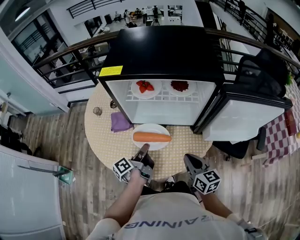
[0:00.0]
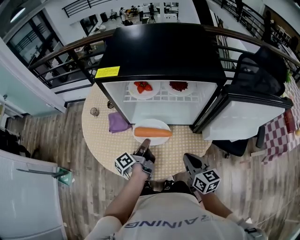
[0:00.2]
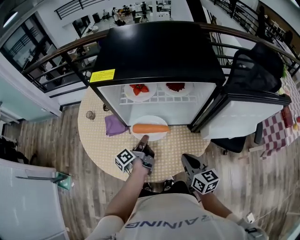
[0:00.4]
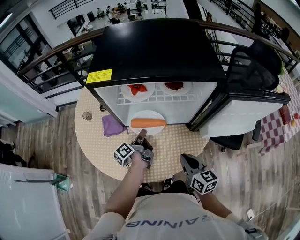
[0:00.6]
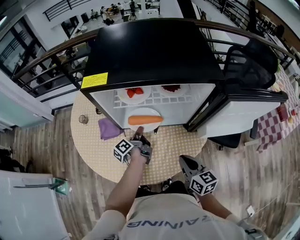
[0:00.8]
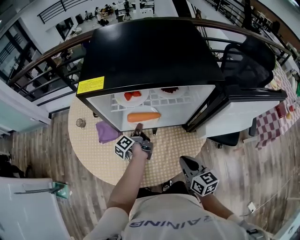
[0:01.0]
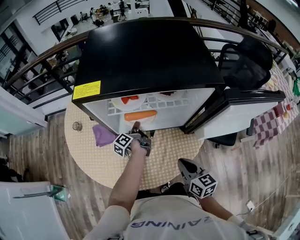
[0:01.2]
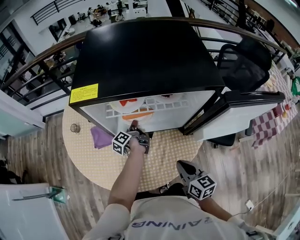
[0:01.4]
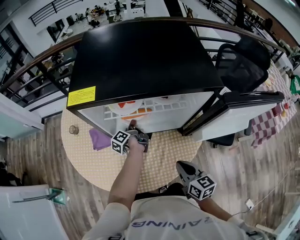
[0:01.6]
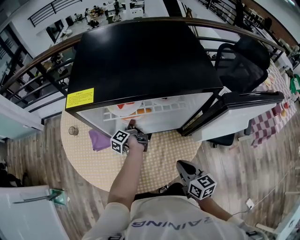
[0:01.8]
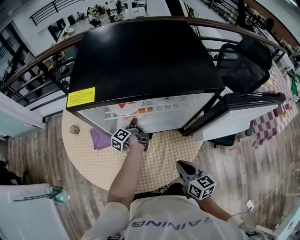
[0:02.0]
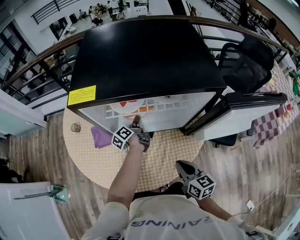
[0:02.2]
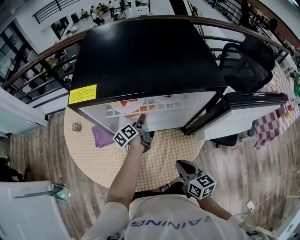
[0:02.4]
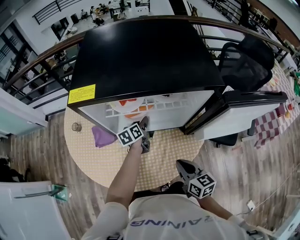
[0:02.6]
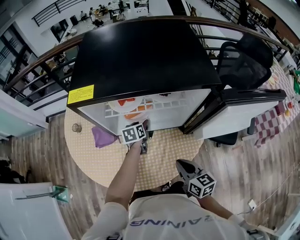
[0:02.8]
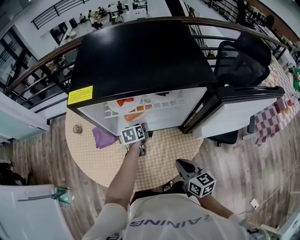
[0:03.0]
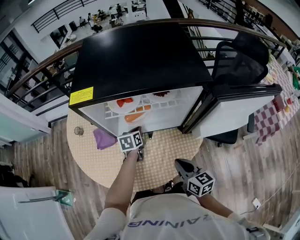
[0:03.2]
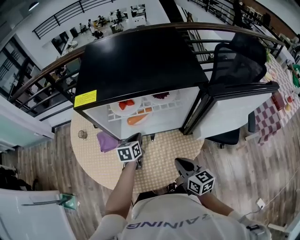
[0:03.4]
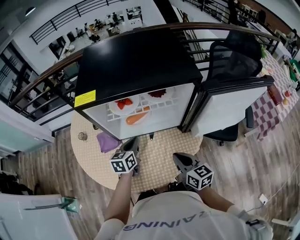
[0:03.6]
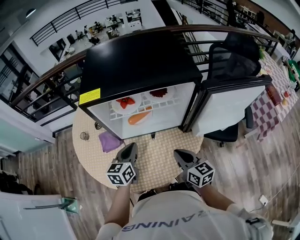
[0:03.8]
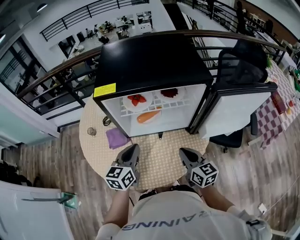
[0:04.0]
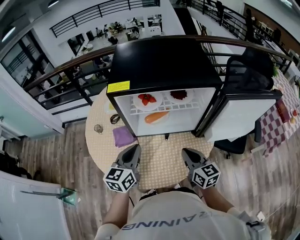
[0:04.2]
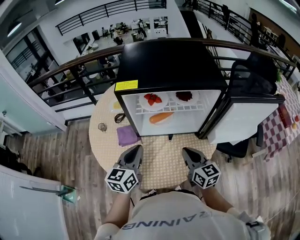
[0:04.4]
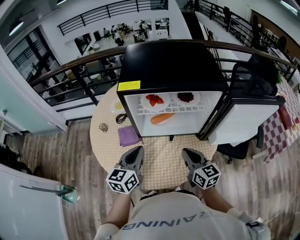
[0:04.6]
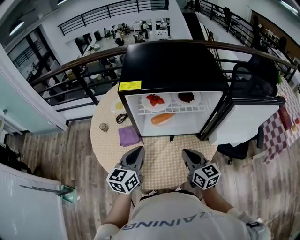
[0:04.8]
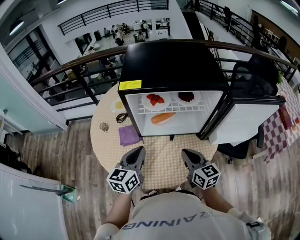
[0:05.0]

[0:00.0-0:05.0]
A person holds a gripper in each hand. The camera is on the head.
3.4 to 5.0 s: The right gripper shifts by about 10 cm.

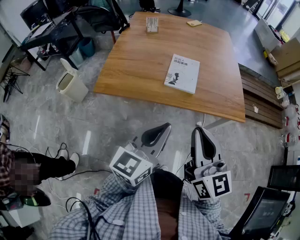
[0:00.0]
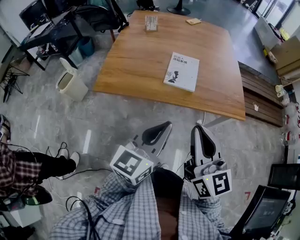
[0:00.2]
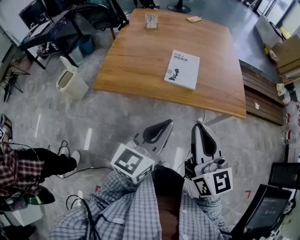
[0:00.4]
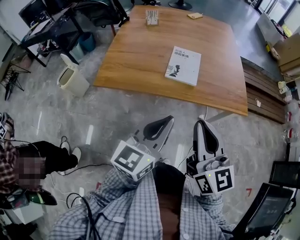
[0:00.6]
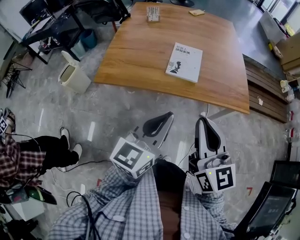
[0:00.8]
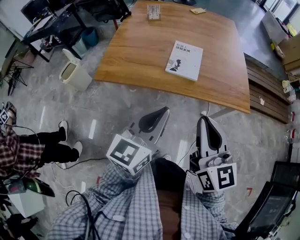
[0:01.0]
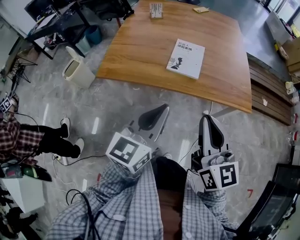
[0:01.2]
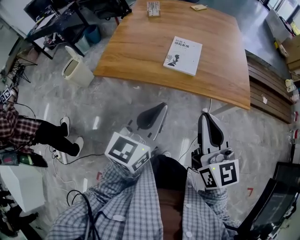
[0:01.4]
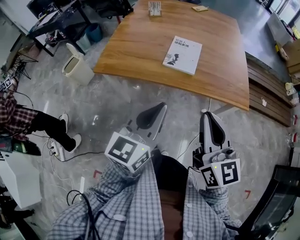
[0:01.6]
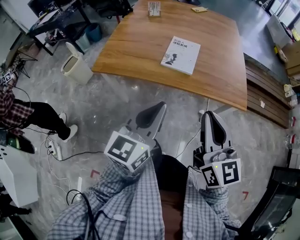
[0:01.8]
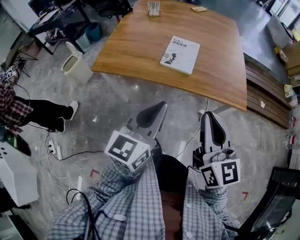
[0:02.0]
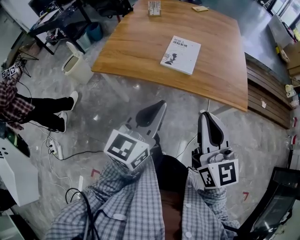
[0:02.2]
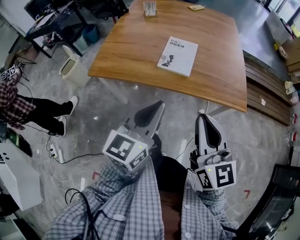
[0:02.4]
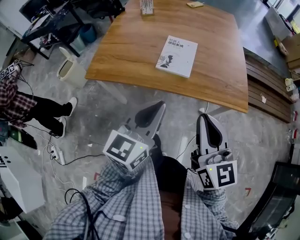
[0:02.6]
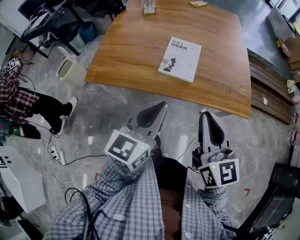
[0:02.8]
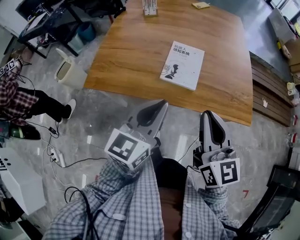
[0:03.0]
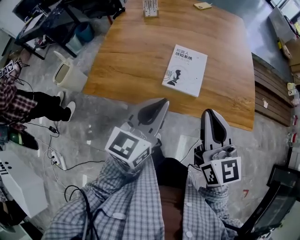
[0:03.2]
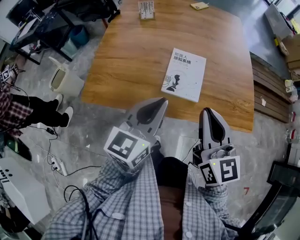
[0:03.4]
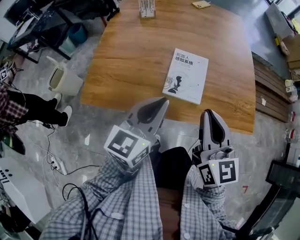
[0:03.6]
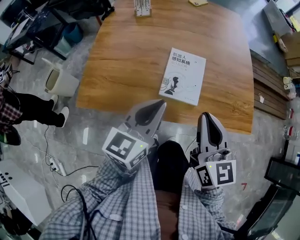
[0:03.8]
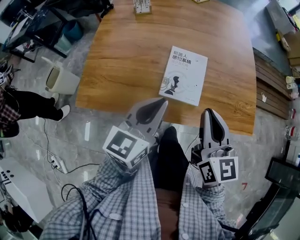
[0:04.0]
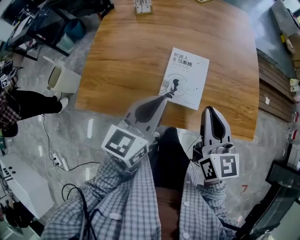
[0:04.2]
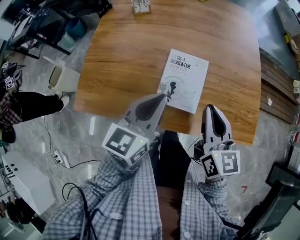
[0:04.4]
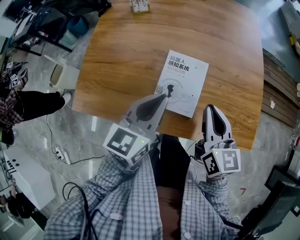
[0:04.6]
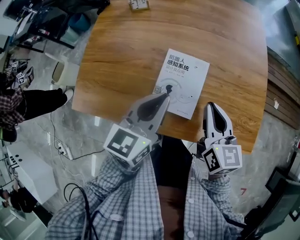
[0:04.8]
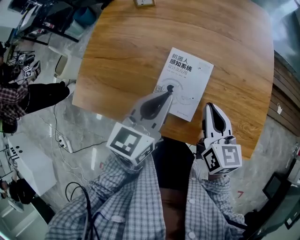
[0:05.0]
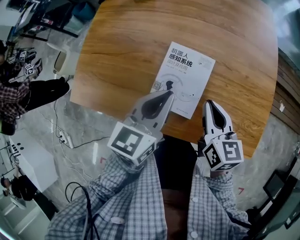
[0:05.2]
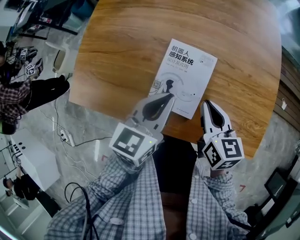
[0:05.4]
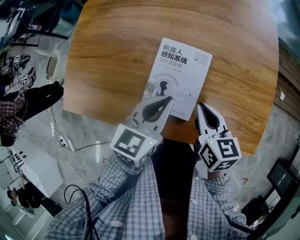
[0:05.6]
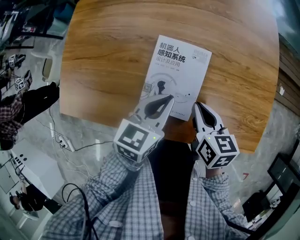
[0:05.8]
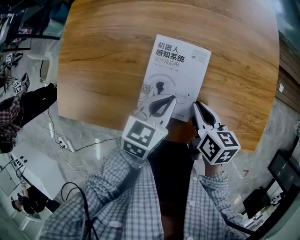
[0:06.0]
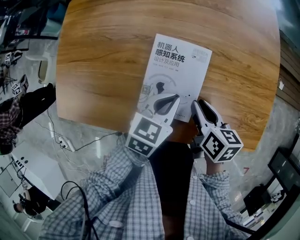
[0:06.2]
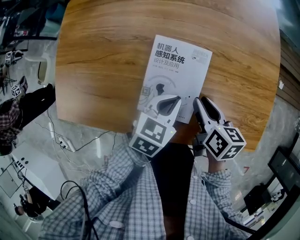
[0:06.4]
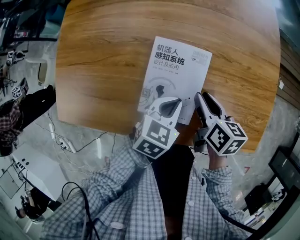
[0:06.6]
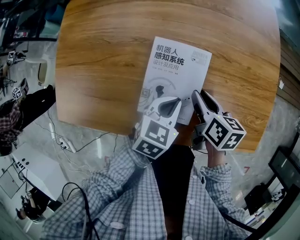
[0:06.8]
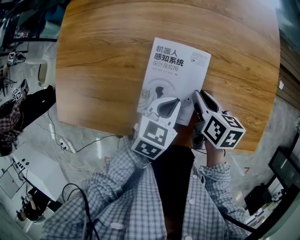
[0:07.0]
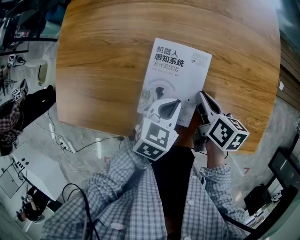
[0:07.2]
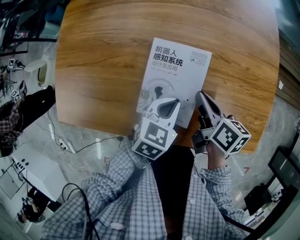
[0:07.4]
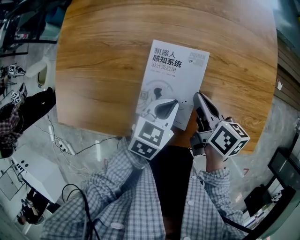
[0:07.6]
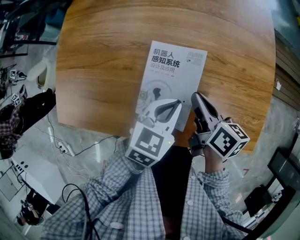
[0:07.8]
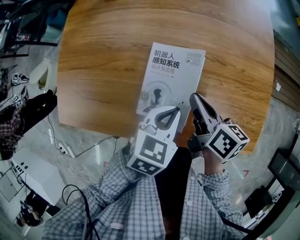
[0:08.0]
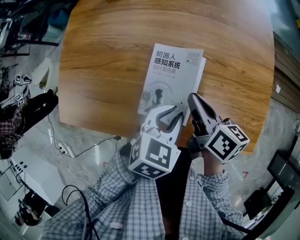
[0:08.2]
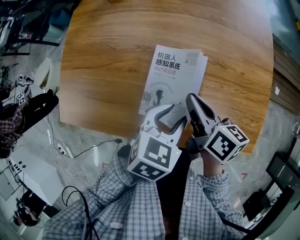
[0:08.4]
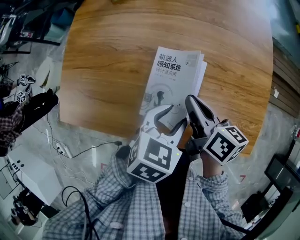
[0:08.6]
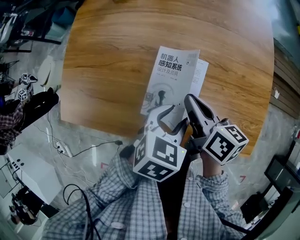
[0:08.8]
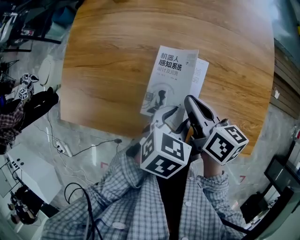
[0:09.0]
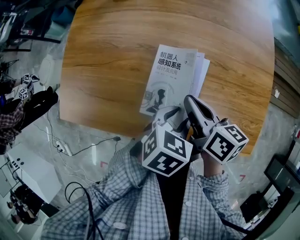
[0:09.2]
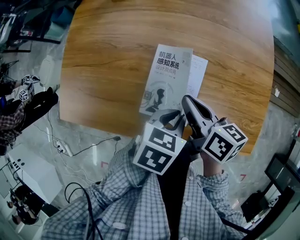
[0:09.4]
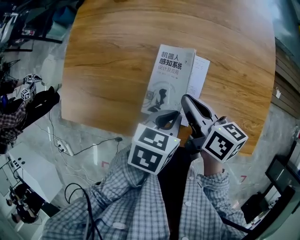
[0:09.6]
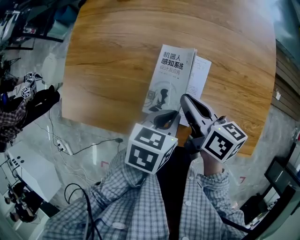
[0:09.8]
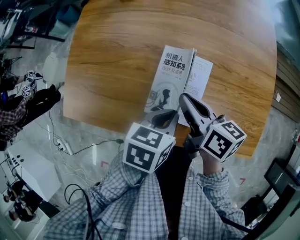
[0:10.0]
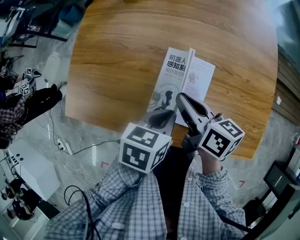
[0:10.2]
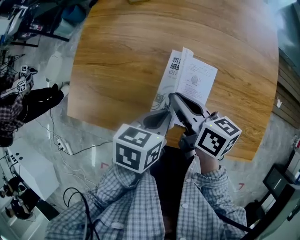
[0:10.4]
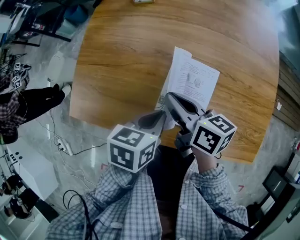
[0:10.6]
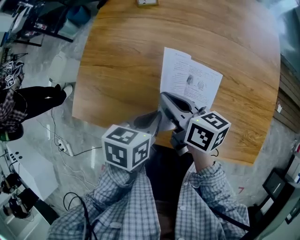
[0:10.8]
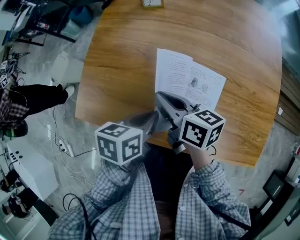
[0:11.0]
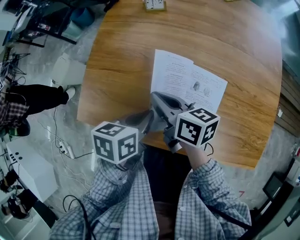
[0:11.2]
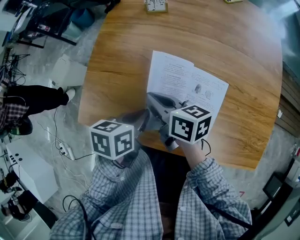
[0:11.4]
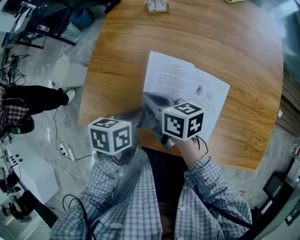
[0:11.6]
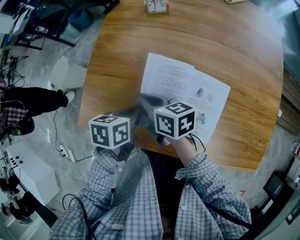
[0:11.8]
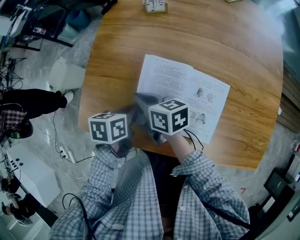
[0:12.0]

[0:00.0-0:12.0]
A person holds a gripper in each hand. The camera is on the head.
0.0 to 1.6 s: The right gripper travels to the right by approximately 10 cm.
1.6 to 3.0 s: The two grippers go roughly 15 cm forward.
3.0 to 4.4 s: Both grippers move forward, about 20 cm.
4.4 to 6.0 s: The right gripper goes approximately 20 cm downward, and swivels roughly 40 degrees. Meanwhile the left gripper shifts roughly 20 cm downward and to the right, and turns by some 30 degrees.
6.0 to 7.6 s: The right gripper goes approximately 5 cm forward.
7.6 to 9.0 s: Both grippers travel together upward, roughly 5 cm. The left gripper opens.
9.0 to 10.4 s: Both grippers travel together to the left, approximately 10 cm. The left gripper rotates about 30 degrees, and closes.
10.4 to 12.0 s: The right gripper moves to the left, some 20 cm. Meanwhile the left gripper travels to the left and forward by approximately 20 cm.

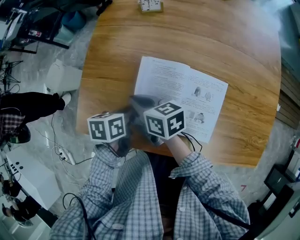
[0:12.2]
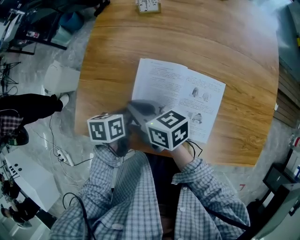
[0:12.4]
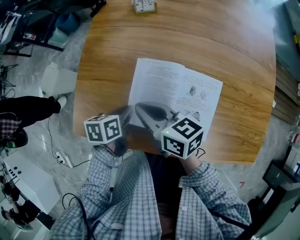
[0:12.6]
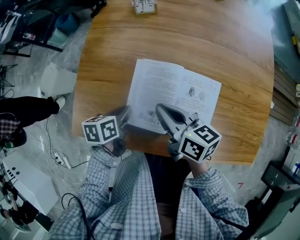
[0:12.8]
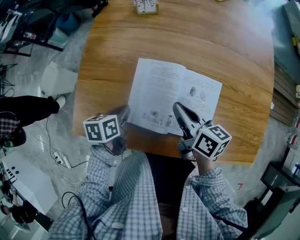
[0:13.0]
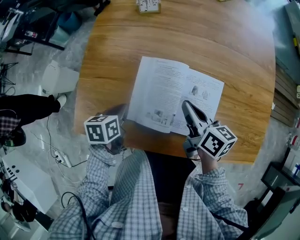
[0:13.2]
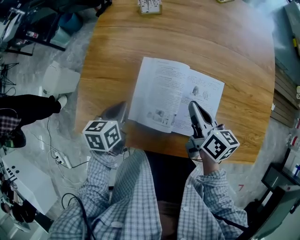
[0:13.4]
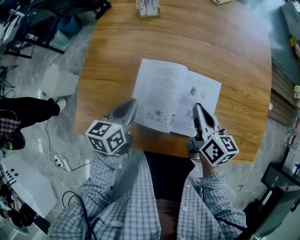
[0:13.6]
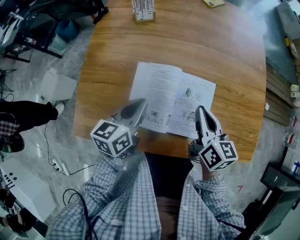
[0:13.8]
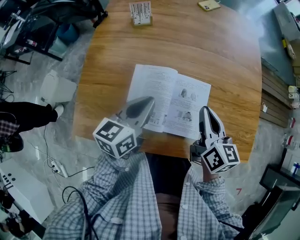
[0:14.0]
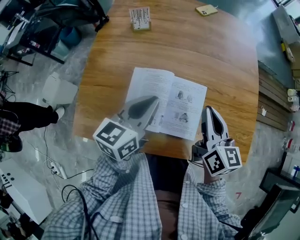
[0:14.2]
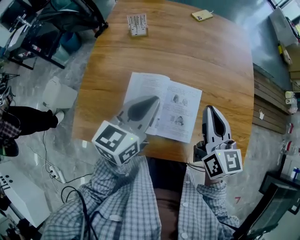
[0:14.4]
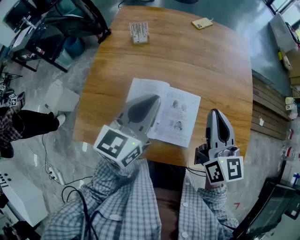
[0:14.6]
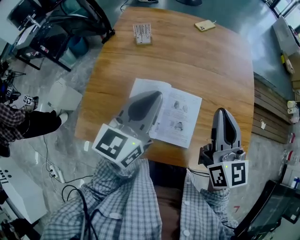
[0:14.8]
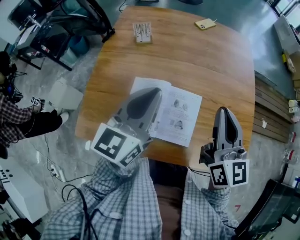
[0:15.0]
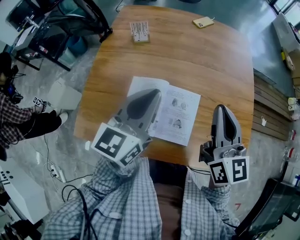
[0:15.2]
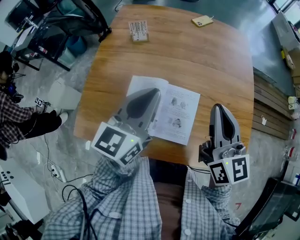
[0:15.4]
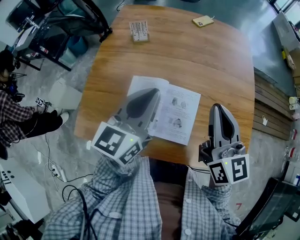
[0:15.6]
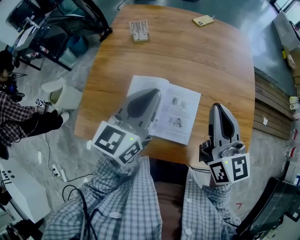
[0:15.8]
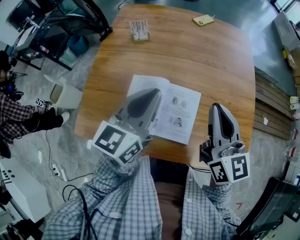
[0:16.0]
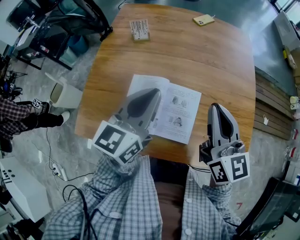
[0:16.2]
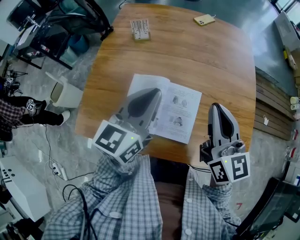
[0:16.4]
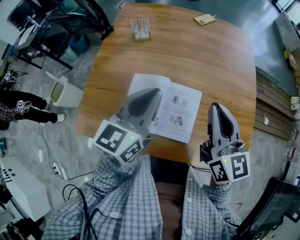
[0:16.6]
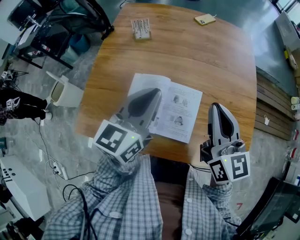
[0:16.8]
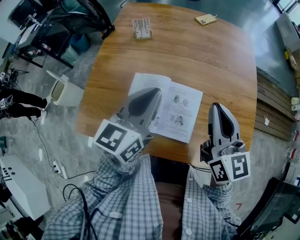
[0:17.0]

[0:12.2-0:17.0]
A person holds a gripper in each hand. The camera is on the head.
12.2 to 13.8 s: The right gripper is displaced to the right by roughly 25 cm, and changes its angle by about 40 degrees. Meanwhile the left gripper heads upward and to the right, covering some 10 cm, and turns by about 30 degrees.
13.8 to 15.4 s: The right gripper goes roughly 20 cm upward, and rotates some 30 degrees. The left gripper moves upward and to the right, some 20 cm, and turns by roughly 30 degrees.
15.4 to 17.0 s: Neither gripper changes place.

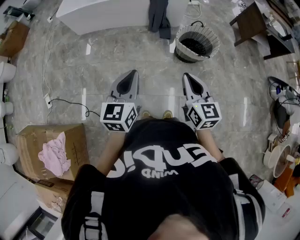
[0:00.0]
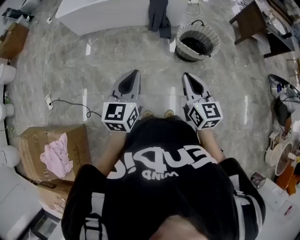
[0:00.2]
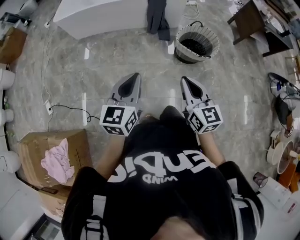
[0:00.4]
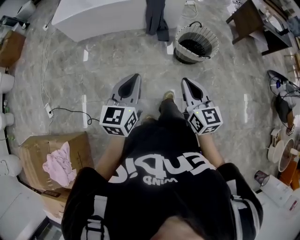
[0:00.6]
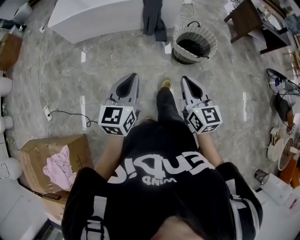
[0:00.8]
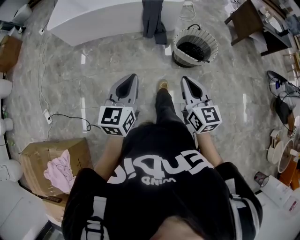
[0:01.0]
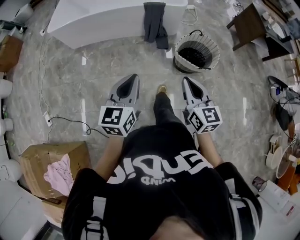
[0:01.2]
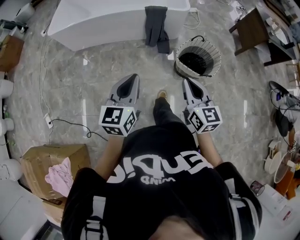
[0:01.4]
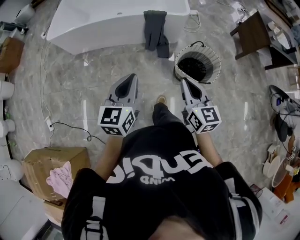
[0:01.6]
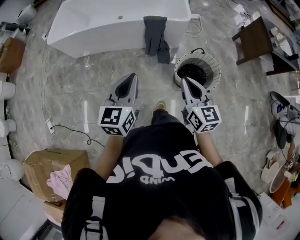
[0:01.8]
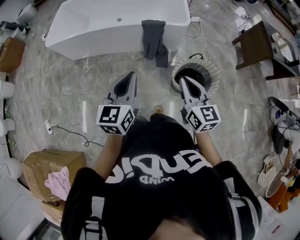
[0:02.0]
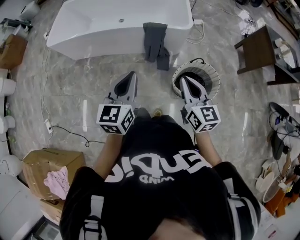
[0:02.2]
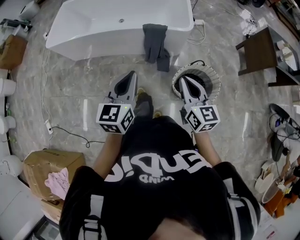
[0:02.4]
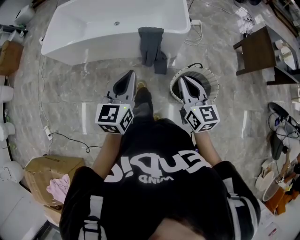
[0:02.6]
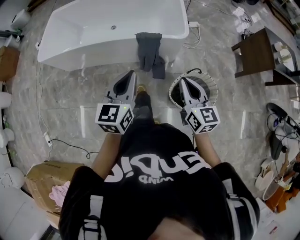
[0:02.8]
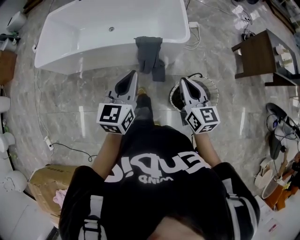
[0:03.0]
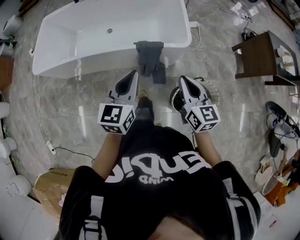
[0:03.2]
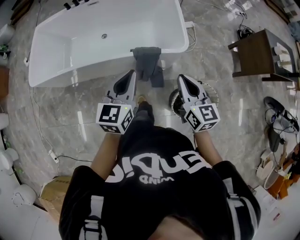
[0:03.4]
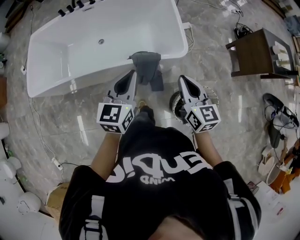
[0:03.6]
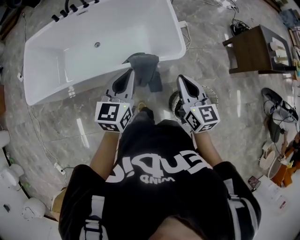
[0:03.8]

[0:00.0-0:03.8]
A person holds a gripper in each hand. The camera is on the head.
0.0 to 1.2 s: Both grippers move forward, approximately 15 cm.
1.2 to 2.6 s: Both grippers travel together forward, approximately 35 cm.
2.6 to 3.8 s: Both grippers travel together forward, approximately 35 cm.
